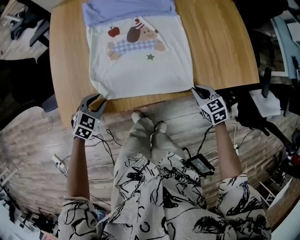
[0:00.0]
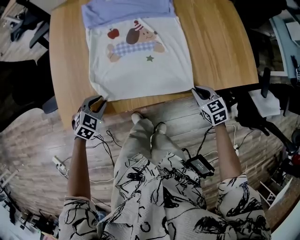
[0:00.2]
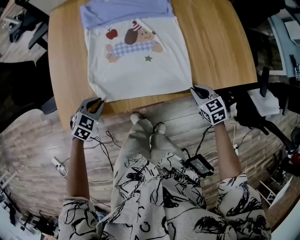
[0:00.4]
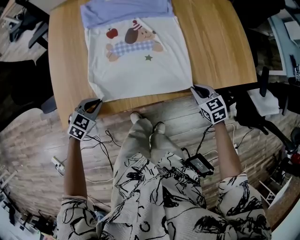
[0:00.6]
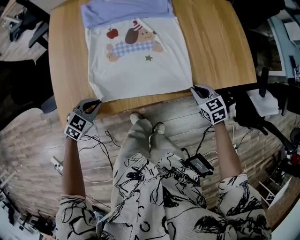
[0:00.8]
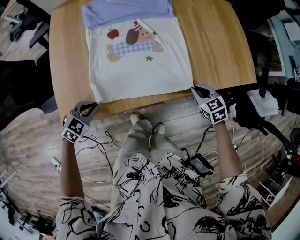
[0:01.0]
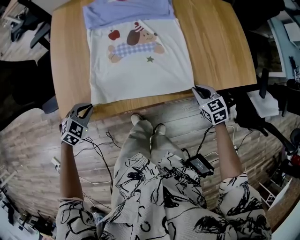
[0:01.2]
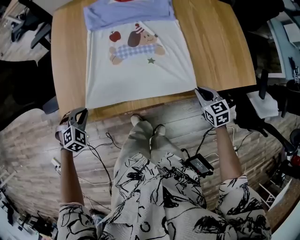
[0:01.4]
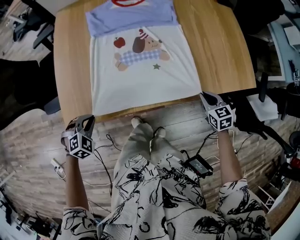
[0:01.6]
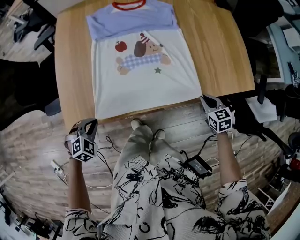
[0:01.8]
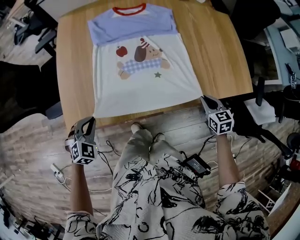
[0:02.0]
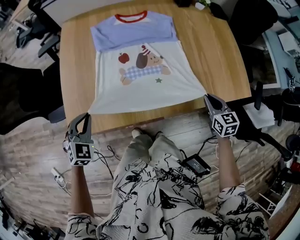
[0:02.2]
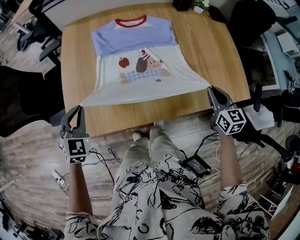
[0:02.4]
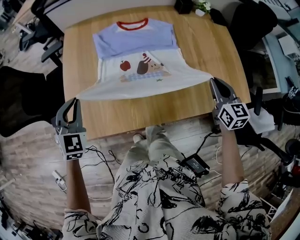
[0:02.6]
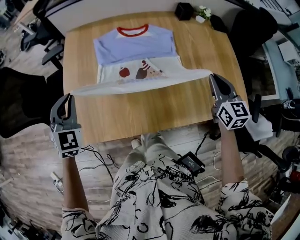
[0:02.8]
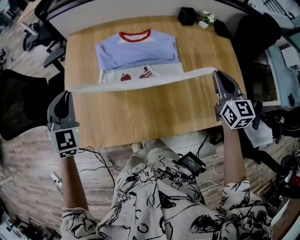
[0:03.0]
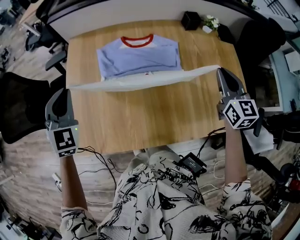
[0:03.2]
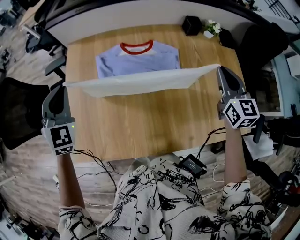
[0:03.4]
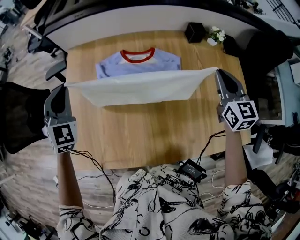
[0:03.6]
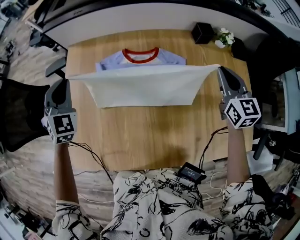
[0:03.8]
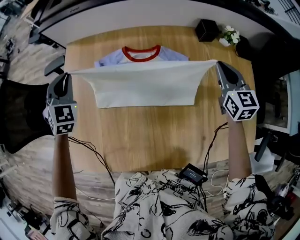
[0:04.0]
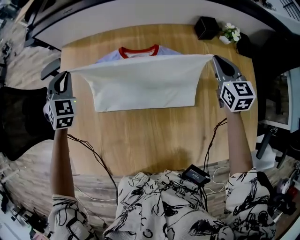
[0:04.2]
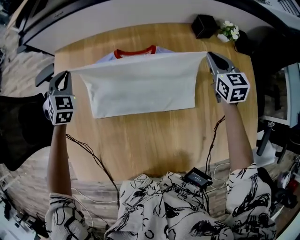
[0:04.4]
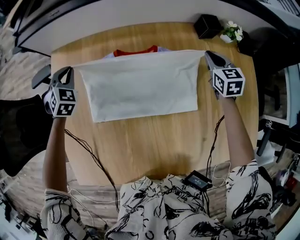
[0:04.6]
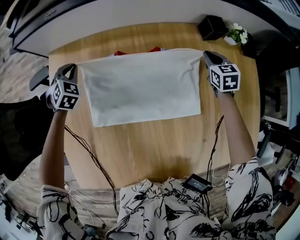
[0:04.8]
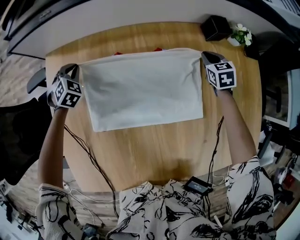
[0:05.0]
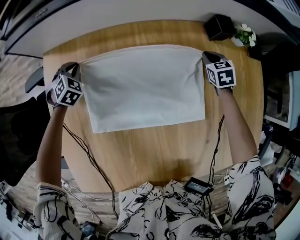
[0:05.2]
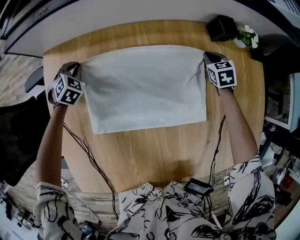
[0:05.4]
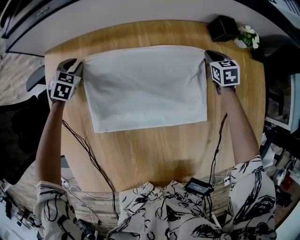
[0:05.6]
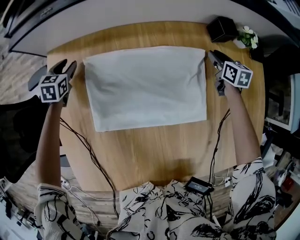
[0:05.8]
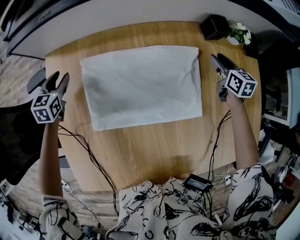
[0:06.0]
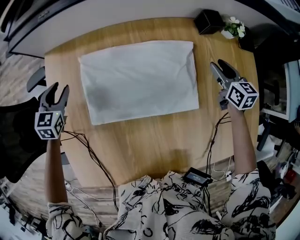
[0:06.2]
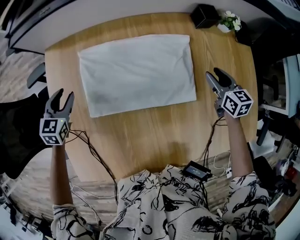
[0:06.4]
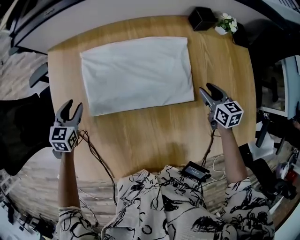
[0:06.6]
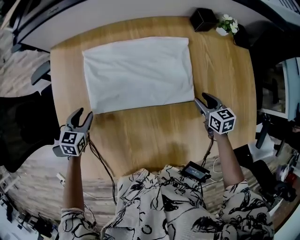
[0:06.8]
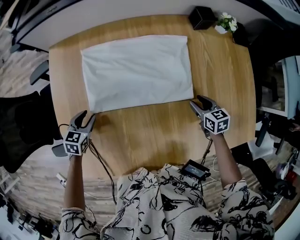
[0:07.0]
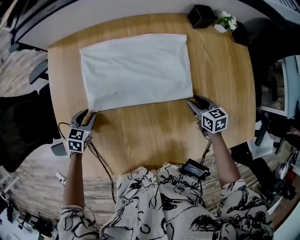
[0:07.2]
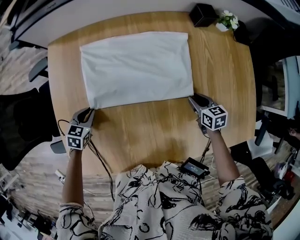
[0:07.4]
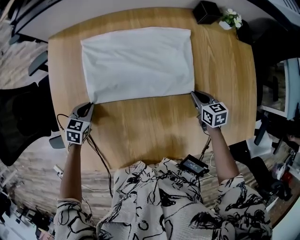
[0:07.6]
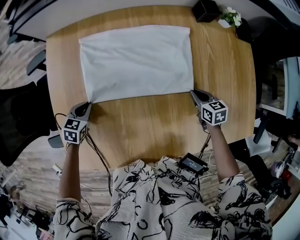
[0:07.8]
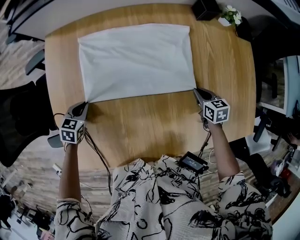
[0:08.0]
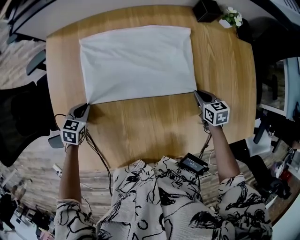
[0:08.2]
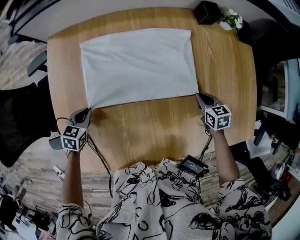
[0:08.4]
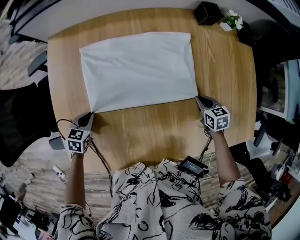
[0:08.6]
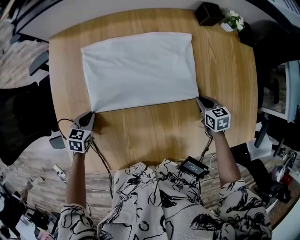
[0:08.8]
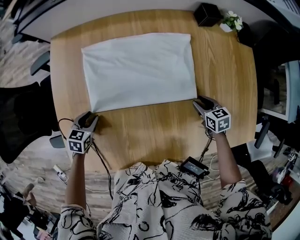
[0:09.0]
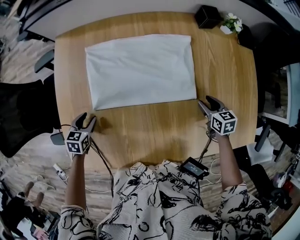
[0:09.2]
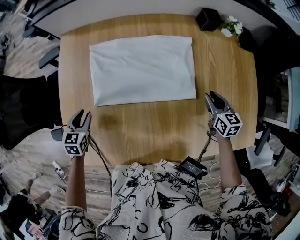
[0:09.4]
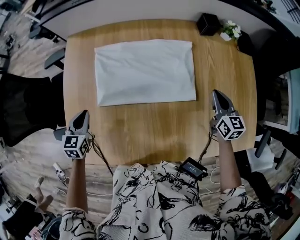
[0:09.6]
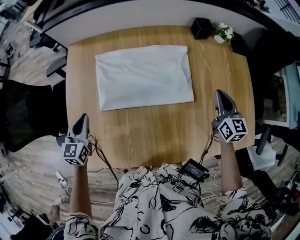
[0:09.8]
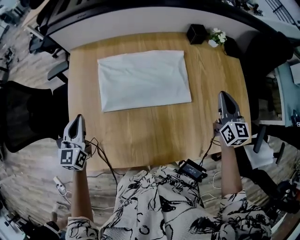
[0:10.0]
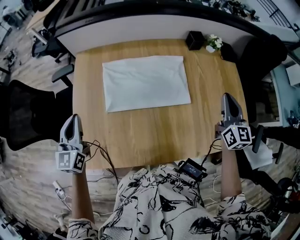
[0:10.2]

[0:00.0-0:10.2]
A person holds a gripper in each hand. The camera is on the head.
0:00.0 to 0:01.4: The left gripper goes about 10 cm to the left, and rotates approximately 20 degrees.
0:01.4 to 0:03.0: The grippers both shift upward and forward by roughly 35 cm. The left gripper tilts its fingers about 40 degrees upward; the right gripper tips its fingers upward by some 30 degrees.
0:03.0 to 0:04.4: The grippers both shift forward and downward by approximately 35 cm.
0:04.4 to 0:05.8: The grippers both shift downward and forward by approximately 15 cm. The right gripper swivels roughly 20 degrees. The left gripper turns by approximately 30 degrees, and opens up.
0:05.8 to 0:07.2: The two grippers go about 30 cm backward.
0:07.2 to 0:08.8: The grippers stay close to where they were, moving slightly.
0:08.8 to 0:10.2: Both grippers move upward, about 30 cm. The left gripper tips its fingers upward by some 50 degrees, and opens and closes again. Meanwhile the right gripper tilts its fingers approximately 50 degrees upward, and opens and closes again.

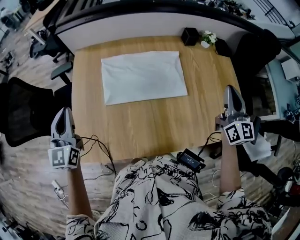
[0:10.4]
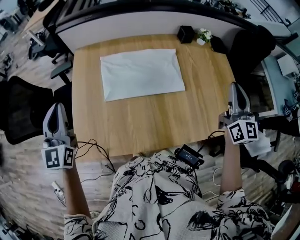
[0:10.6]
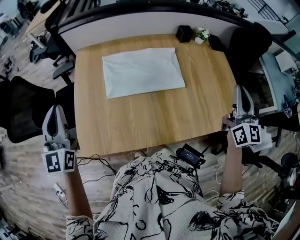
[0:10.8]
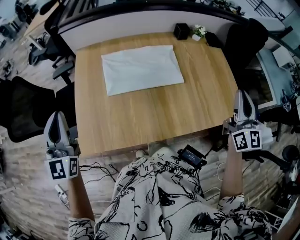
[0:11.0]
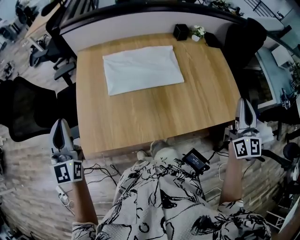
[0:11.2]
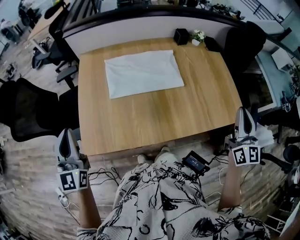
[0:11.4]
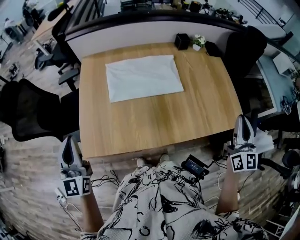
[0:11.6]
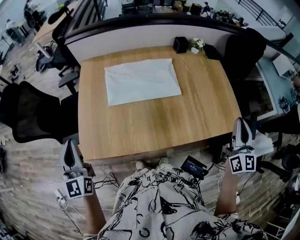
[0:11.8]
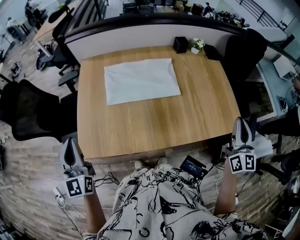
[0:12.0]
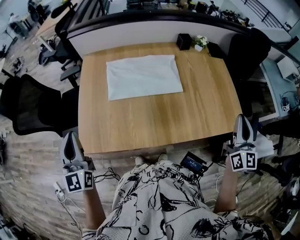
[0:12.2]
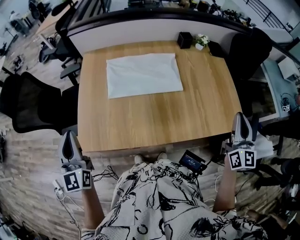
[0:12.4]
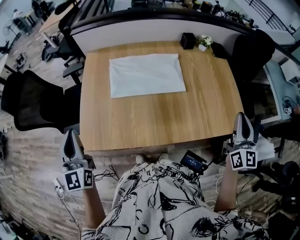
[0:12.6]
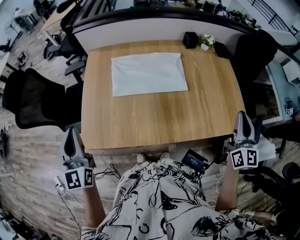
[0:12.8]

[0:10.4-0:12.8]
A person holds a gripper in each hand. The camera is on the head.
0:10.4 to 0:11.6: The two grippers go roughly 20 cm backward.
0:11.6 to 0:12.8: The grippers make only small movements.

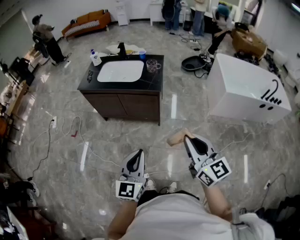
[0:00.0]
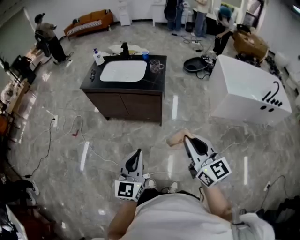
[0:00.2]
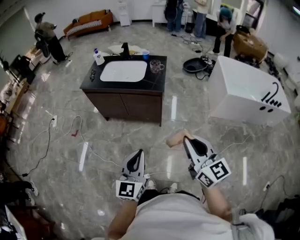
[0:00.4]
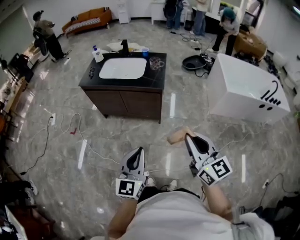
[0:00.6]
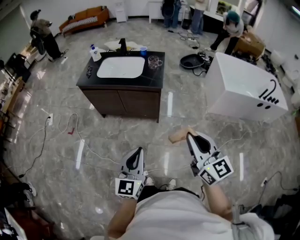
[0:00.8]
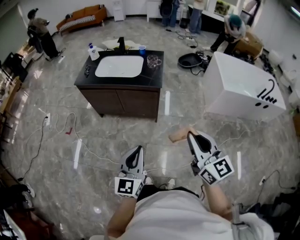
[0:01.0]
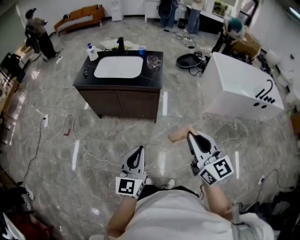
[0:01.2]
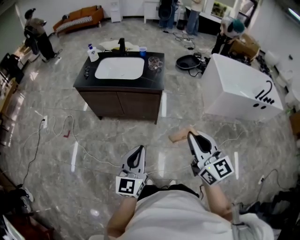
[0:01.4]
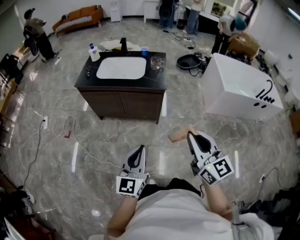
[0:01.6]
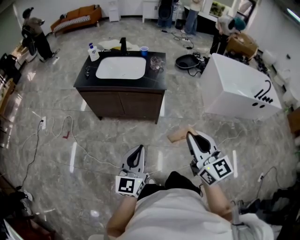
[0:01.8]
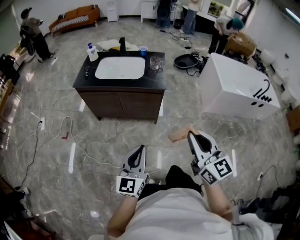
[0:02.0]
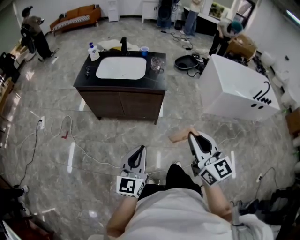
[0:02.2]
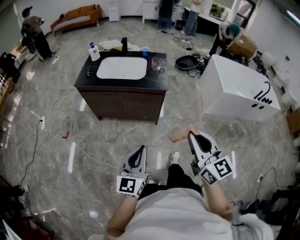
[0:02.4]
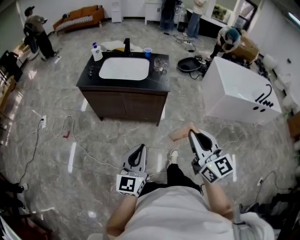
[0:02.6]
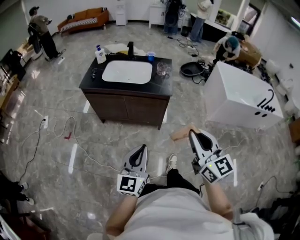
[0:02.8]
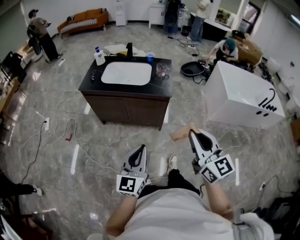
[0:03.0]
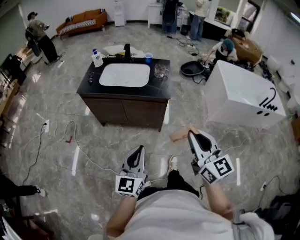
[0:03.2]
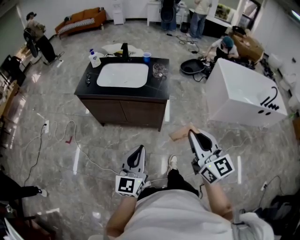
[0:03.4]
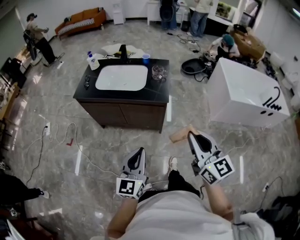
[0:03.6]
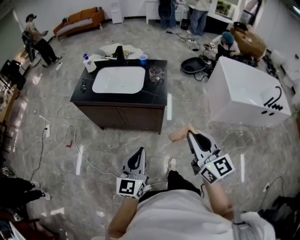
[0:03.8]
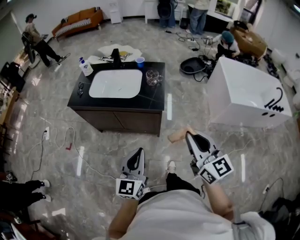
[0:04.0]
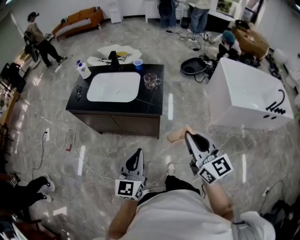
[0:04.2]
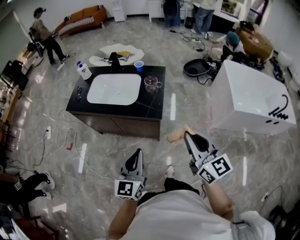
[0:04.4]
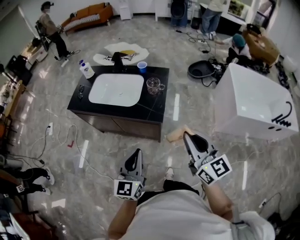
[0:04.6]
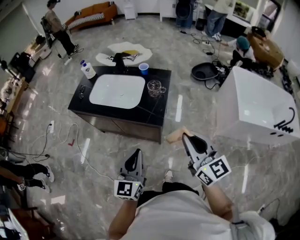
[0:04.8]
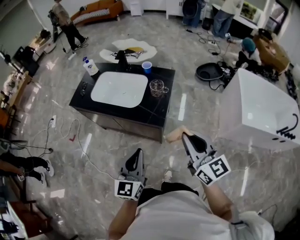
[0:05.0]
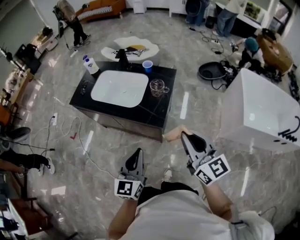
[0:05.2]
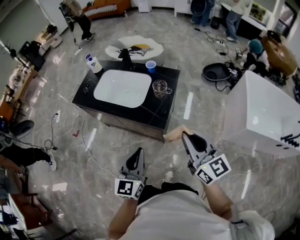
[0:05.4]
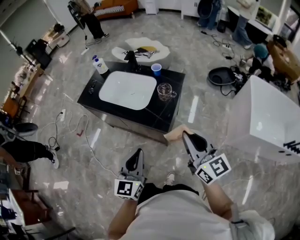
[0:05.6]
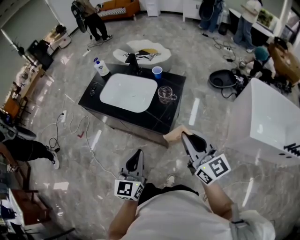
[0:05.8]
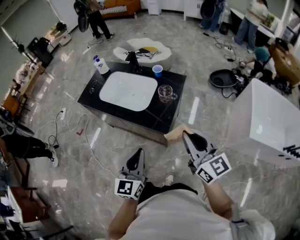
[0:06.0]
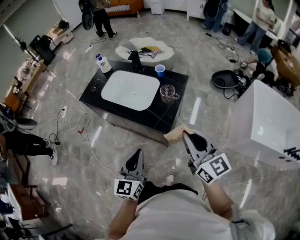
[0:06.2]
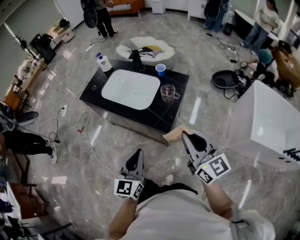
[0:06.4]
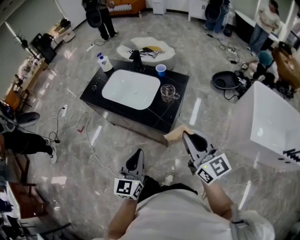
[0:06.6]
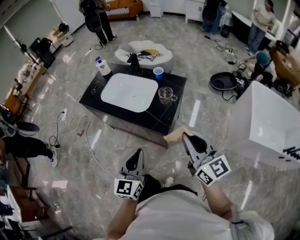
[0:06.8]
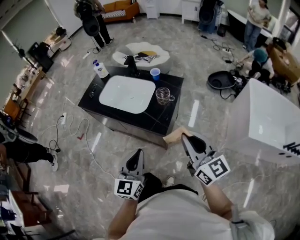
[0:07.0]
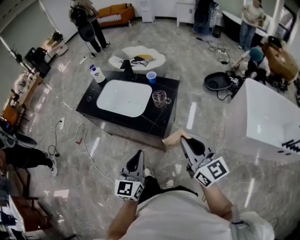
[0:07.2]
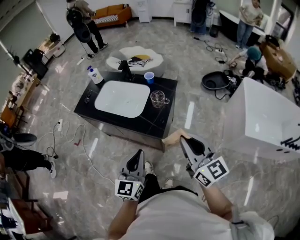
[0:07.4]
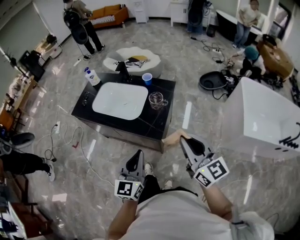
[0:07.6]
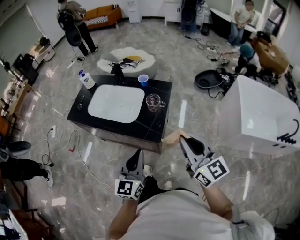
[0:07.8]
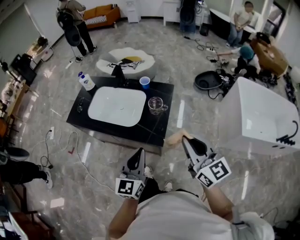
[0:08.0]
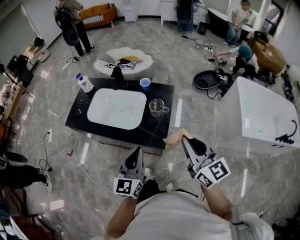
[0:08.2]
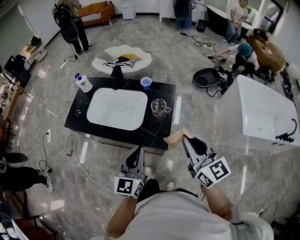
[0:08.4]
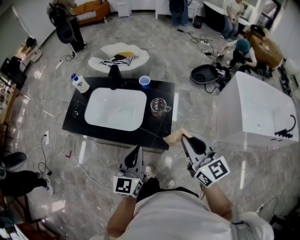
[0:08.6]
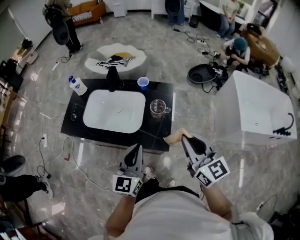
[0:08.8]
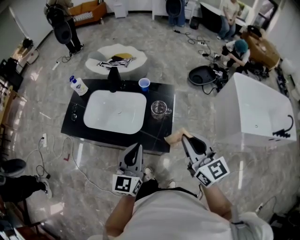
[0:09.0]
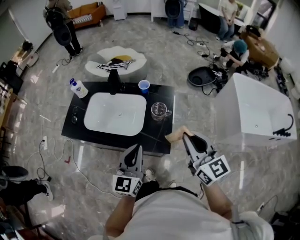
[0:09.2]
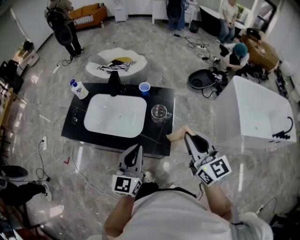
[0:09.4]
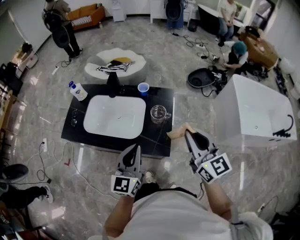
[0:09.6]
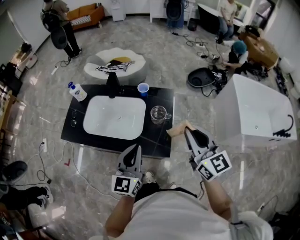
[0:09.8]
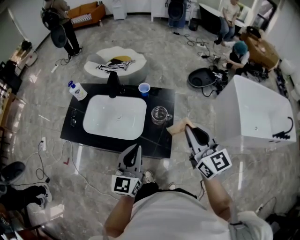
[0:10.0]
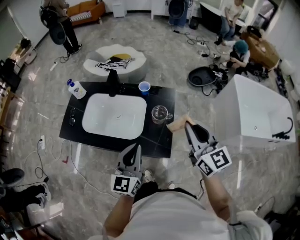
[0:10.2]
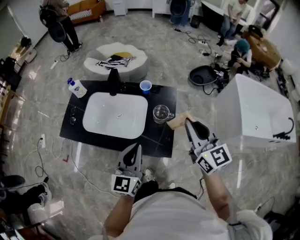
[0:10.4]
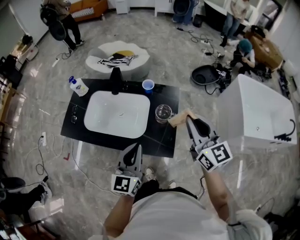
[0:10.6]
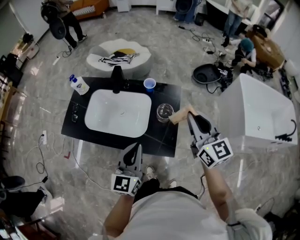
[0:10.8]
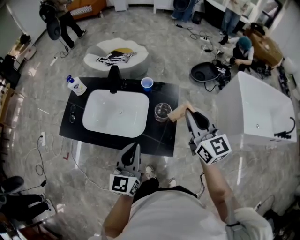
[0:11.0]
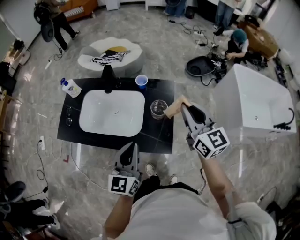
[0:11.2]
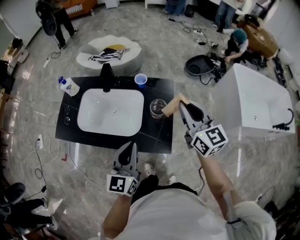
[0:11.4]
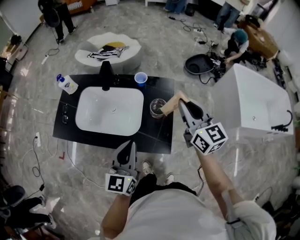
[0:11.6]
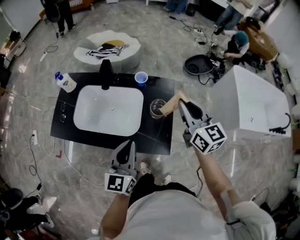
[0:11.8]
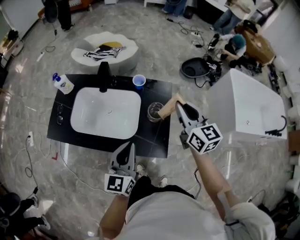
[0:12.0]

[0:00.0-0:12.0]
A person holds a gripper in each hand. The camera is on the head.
0:00.0 to 0:01.6: The two grippers go about 10 cm to the left.
0:01.6 to 0:03.0: The grippers stay close to where they were, moving slightly.
0:03.0 to 0:04.4: Both grippers move forward and to the right, approximately 25 cm.
0:04.4 to 0:06.0: The left gripper is displaced forward and to the right by roughly 10 cm. Meanwhile the right gripper travels forward by about 15 cm.
0:06.0 to 0:07.6: There are only small adjustments of the grippers.
0:07.6 to 0:09.0: The left gripper is displaced forward by about 15 cm. Meanwhile the right gripper shifts some 10 cm forward and to the left.
0:09.0 to 0:10.4: The right gripper heads forward, covering approximately 10 cm.
0:10.4 to 0:12.0: The right gripper goes approximately 10 cm forward and downward; the left gripper changes place by roughly 5 cm.
